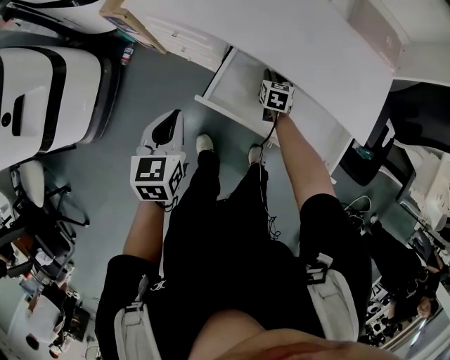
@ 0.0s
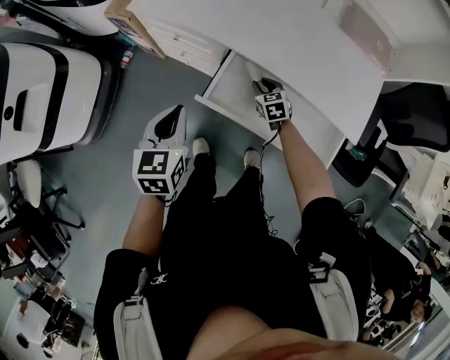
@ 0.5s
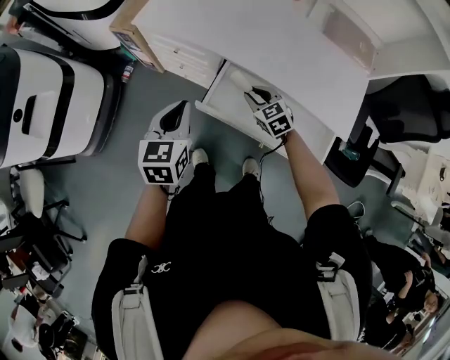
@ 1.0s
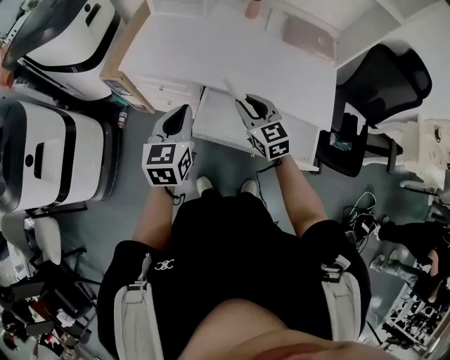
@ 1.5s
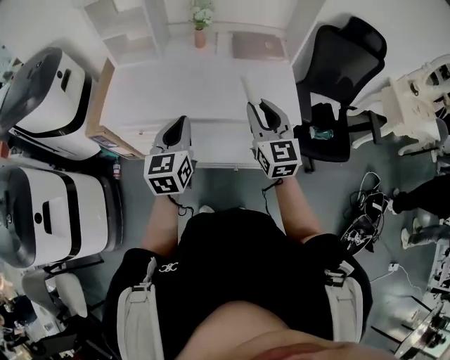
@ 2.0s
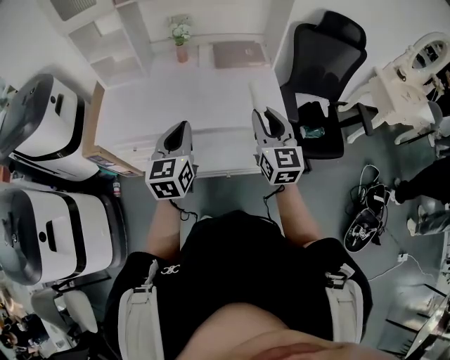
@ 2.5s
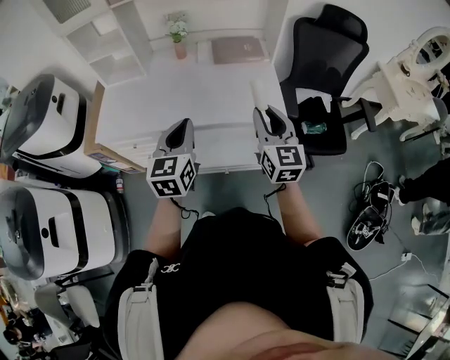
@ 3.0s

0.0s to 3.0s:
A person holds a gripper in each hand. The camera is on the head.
0.0s to 1.5s: The left gripper moves upward, roughly 15 cm, and changes its angle by approximately 20 degrees; the right gripper travels upward by some 35 cm, and changes its angle by approximately 40 degrees.
1.5s to 3.0s: Both grippers travel together to the right and upward, approximately 25 cm. The right gripper changes its angle by about 40 degrees.

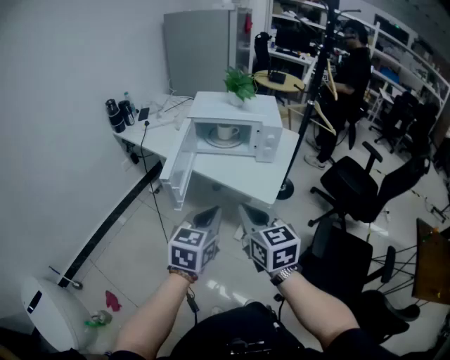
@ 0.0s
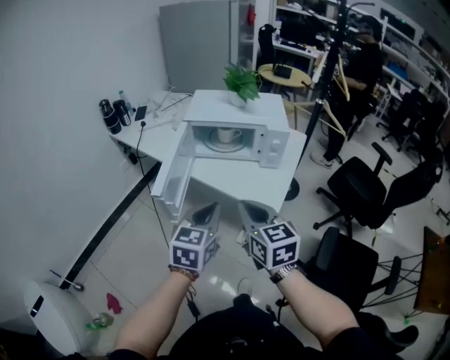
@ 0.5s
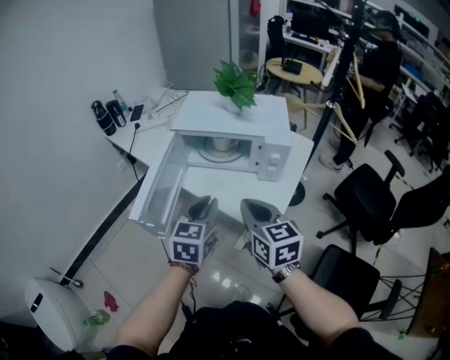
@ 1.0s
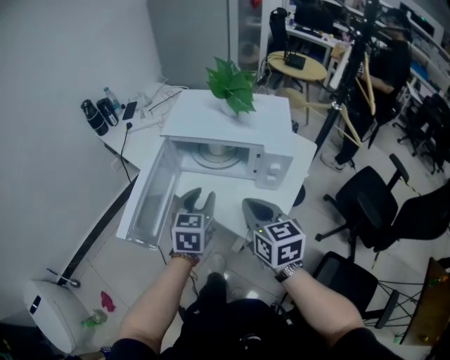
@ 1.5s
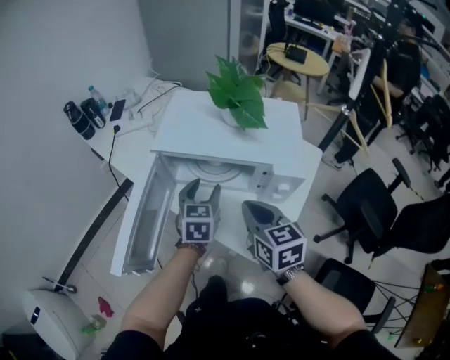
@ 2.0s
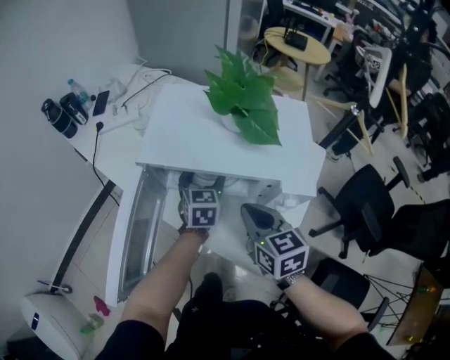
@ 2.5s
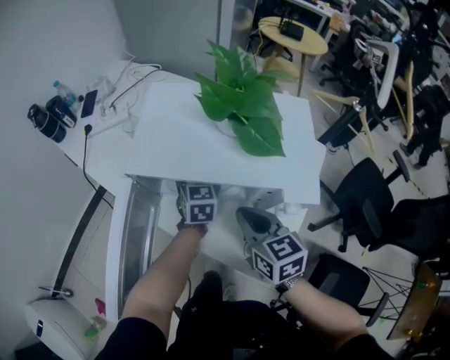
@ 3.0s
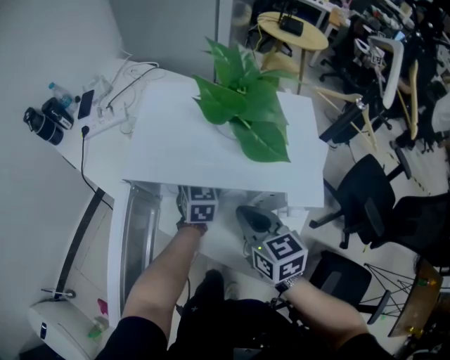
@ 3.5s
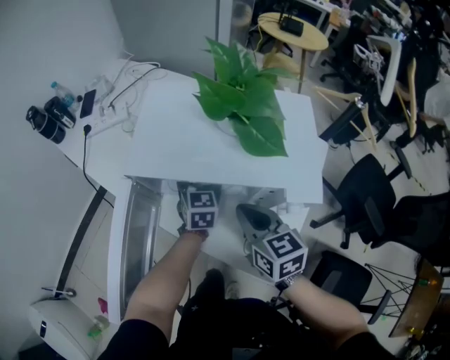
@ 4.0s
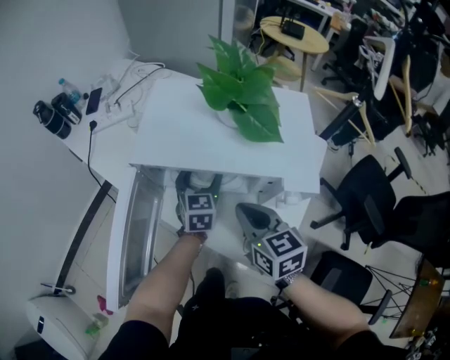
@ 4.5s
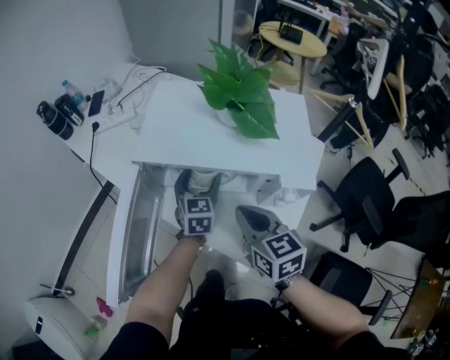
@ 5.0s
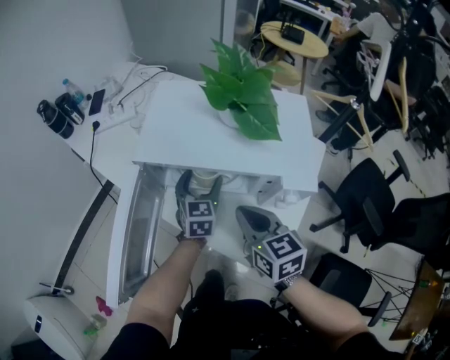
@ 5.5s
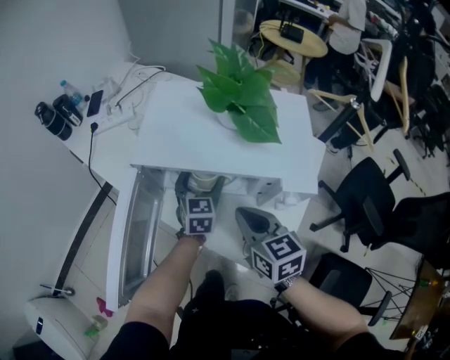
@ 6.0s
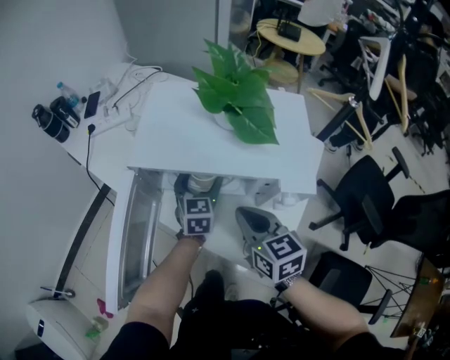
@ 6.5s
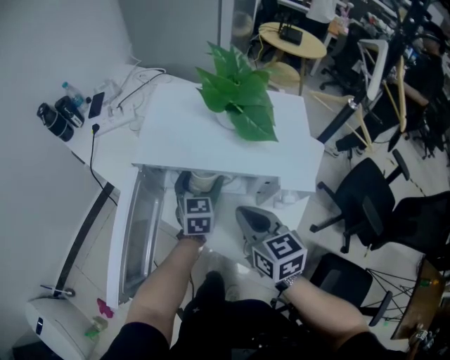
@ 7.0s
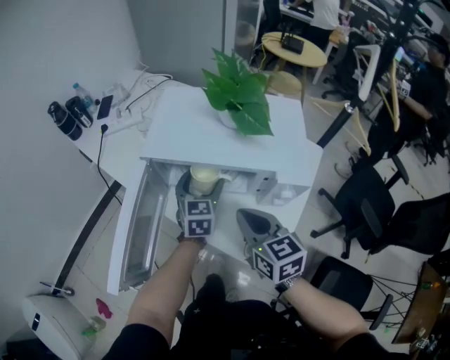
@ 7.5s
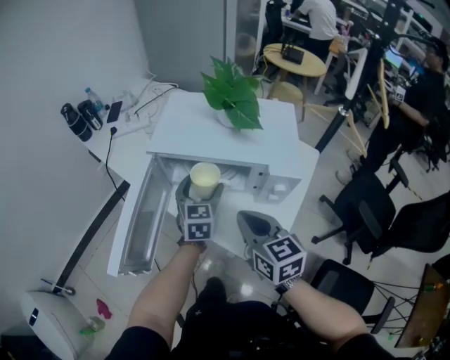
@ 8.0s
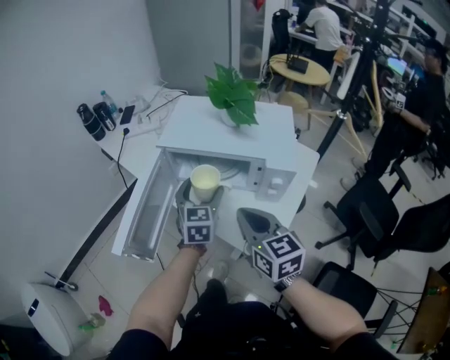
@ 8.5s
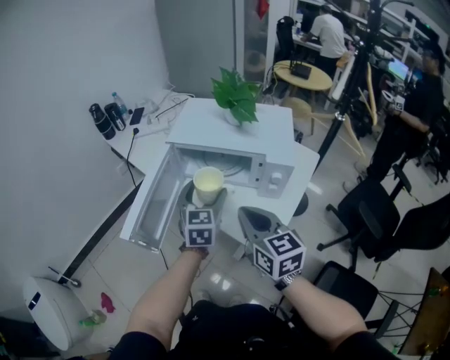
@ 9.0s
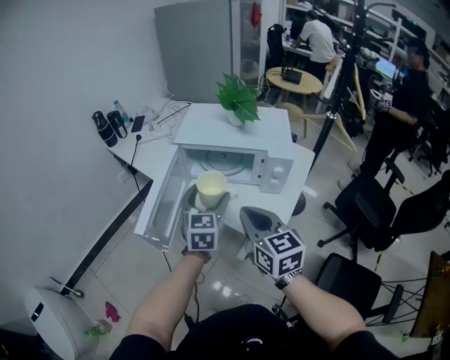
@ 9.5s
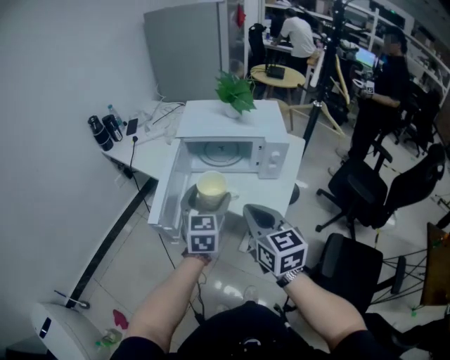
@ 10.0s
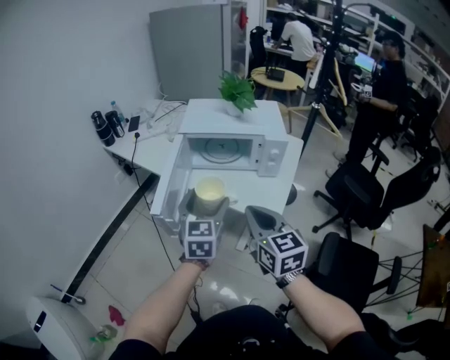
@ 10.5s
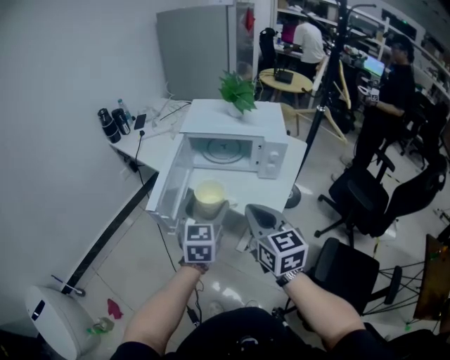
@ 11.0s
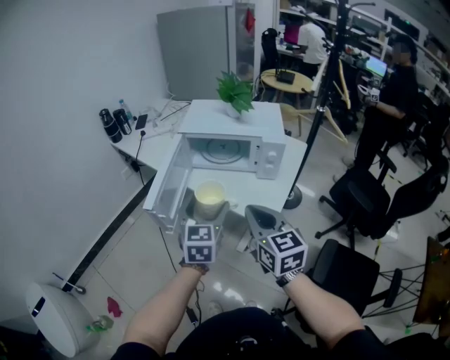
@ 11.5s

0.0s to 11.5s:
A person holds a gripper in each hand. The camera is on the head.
0.0s to 2.0s: The grippers both shift forward by roughly 35 cm. The left gripper opens its fingers.
2.0s to 4.0s: The left gripper travels forward and downward by about 15 cm, while the right gripper goes roughly 10 cm forward and downward.
4.0s to 6.0s: The grippers stay close to where they were, moving slightly.
6.0s to 7.5s: There are only small adjustments of the grippers.
7.5s to 9.5s: Both grippers travel together backward and upward, approximately 20 cm.
9.5s to 11.5s: The grippers both shift backward by approximately 15 cm.

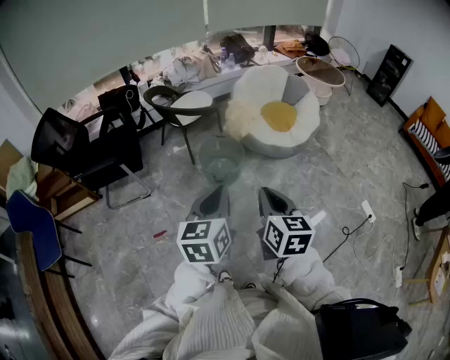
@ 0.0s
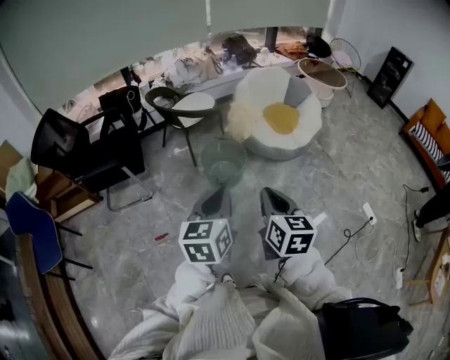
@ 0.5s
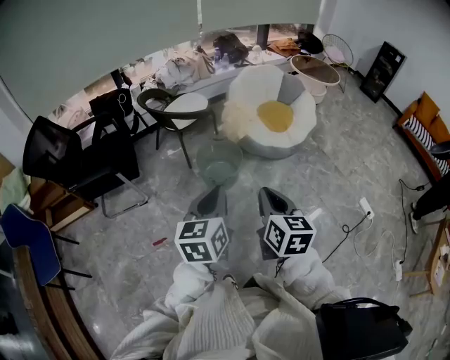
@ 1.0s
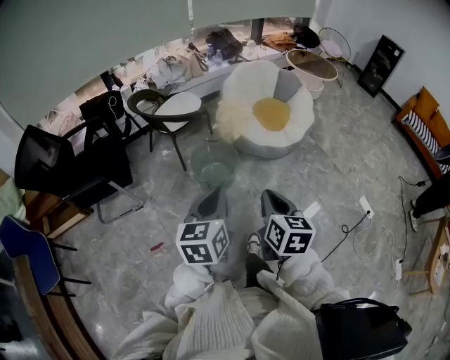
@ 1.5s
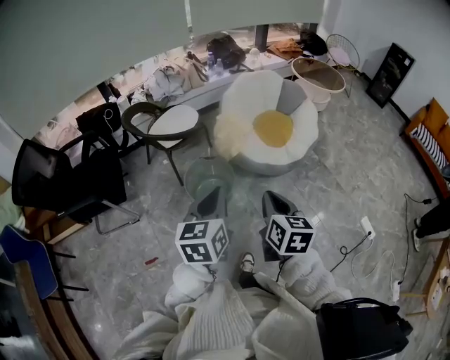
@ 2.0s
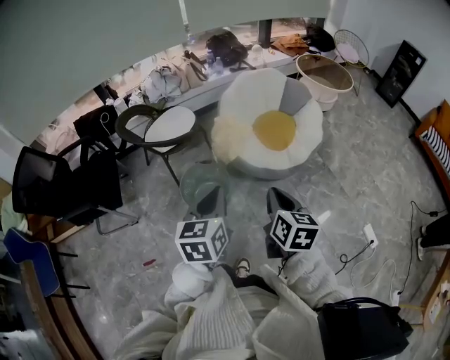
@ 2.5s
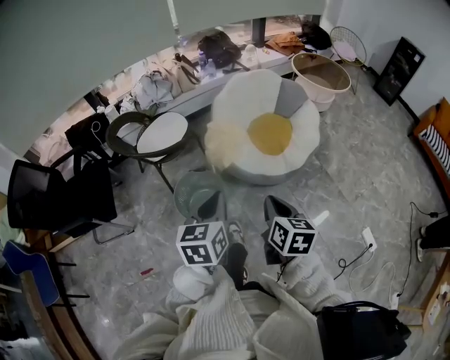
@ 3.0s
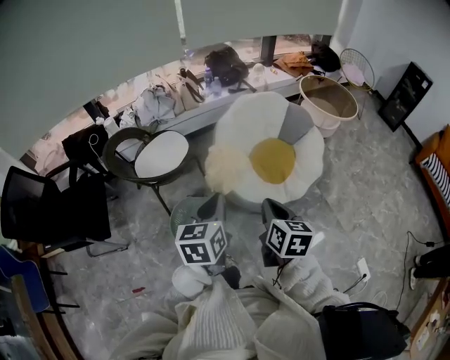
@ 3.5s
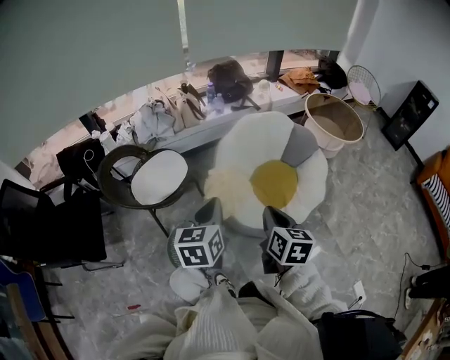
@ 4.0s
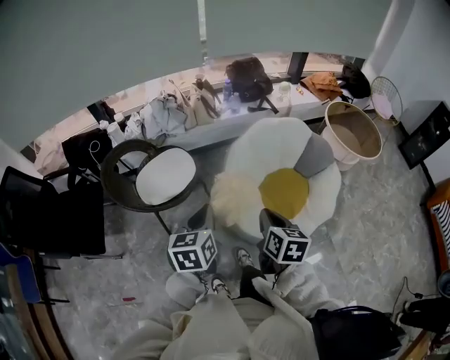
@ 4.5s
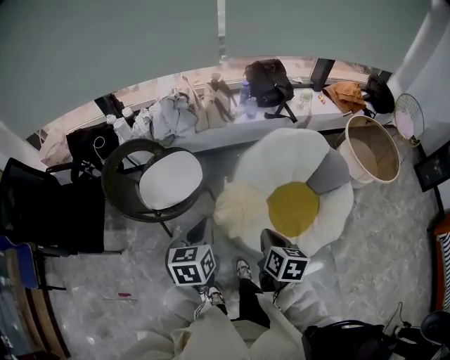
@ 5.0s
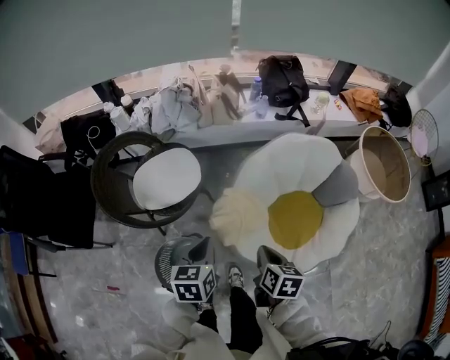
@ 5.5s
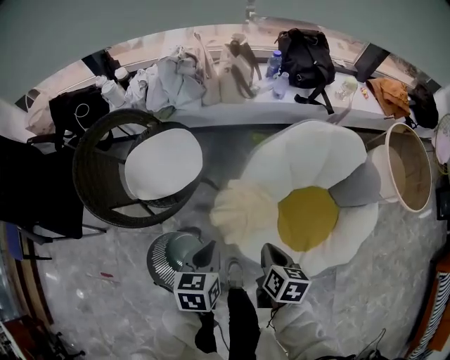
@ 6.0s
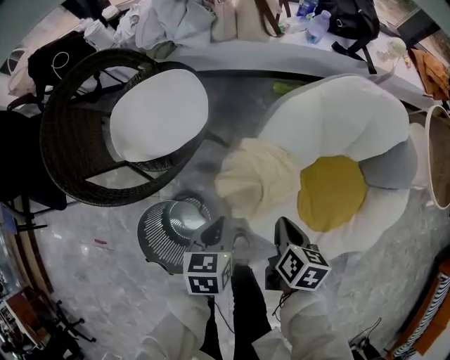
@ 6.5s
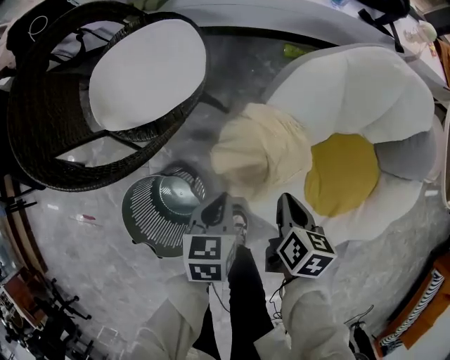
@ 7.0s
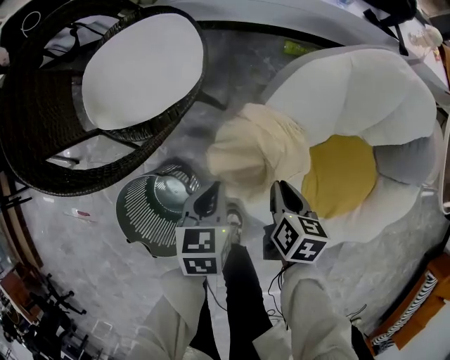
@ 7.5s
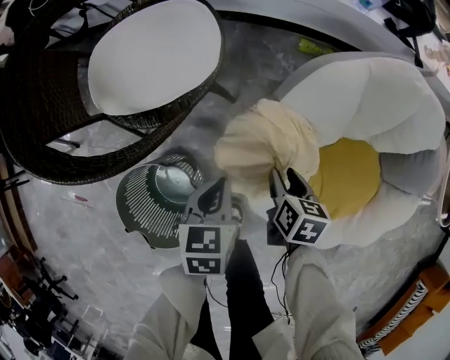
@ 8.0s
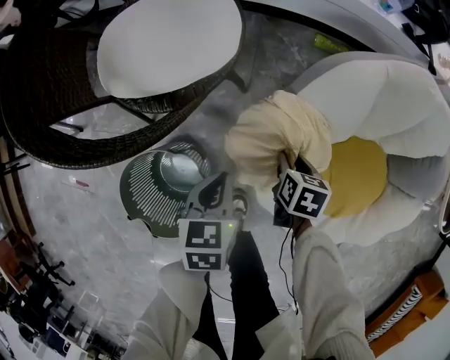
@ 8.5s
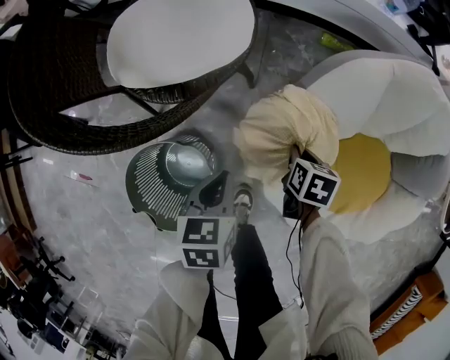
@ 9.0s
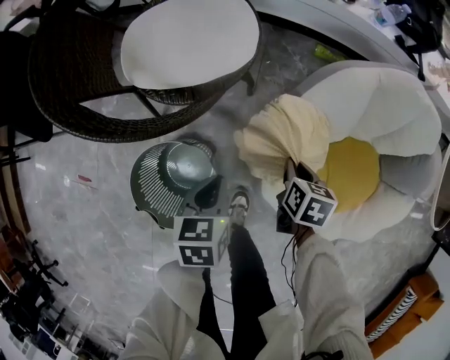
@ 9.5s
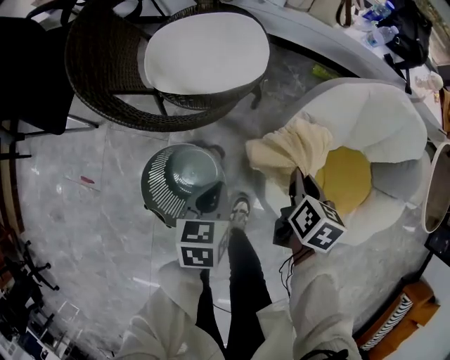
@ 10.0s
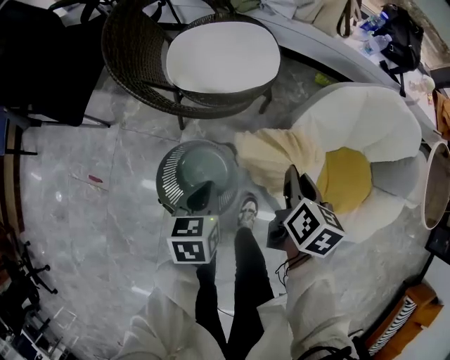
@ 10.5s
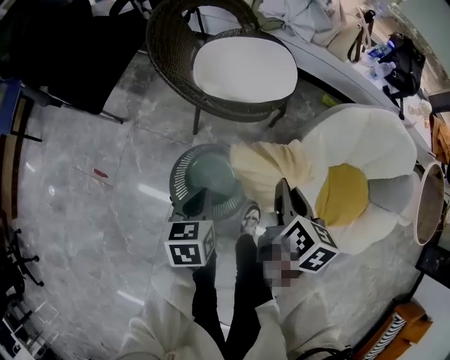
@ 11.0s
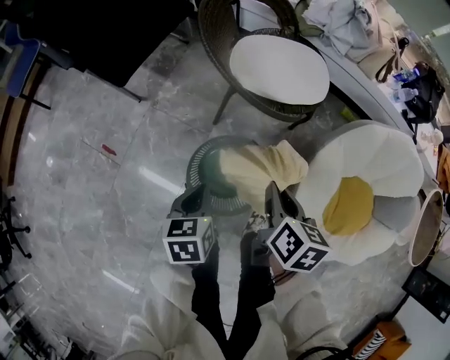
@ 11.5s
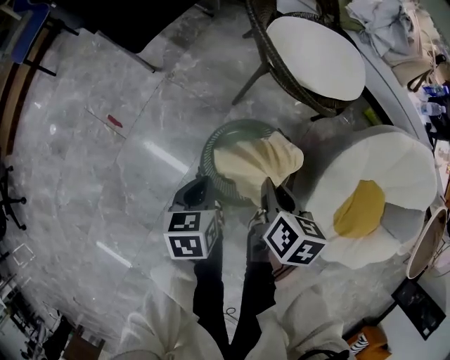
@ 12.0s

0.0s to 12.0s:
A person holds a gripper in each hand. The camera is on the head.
0.0s to 2.0s: Both grippers move forward, roughly 20 cm.
2.0s to 4.0s: The pair of grippers is taken forward, about 40 cm.
4.0s to 6.0s: Both grippers move downward and forward, approximately 35 cm. The left gripper swivels approximately 30 degrees. The right gripper turns by about 30 degrees.
6.0s to 8.0s: The two grippers go about 25 cm downward. The right gripper opens up.
8.0s to 10.0s: The right gripper shifts approximately 15 cm upward and to the left, and closes up. Meanwhile the left gripper shifts some 15 cm to the left, backward and upward.
10.0s to 12.0s: The right gripper moves roughly 10 cm upward and comes back, and rotates roughly 30 degrees, while the left gripper shifts by approximately 30 cm, and turns by approximately 30 degrees.
